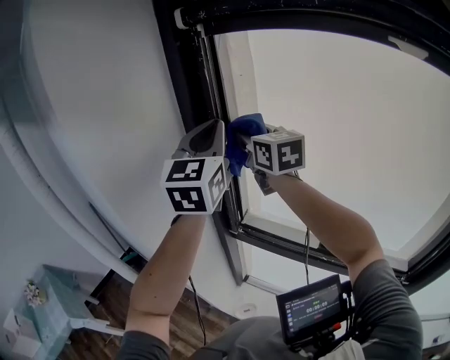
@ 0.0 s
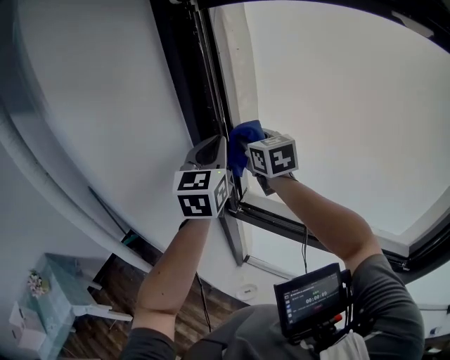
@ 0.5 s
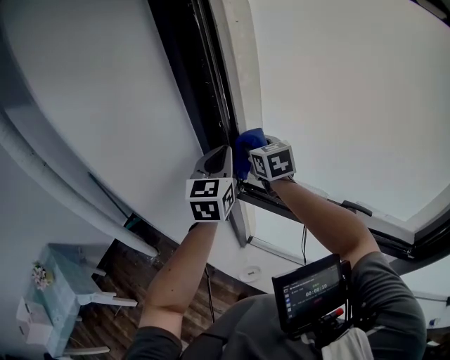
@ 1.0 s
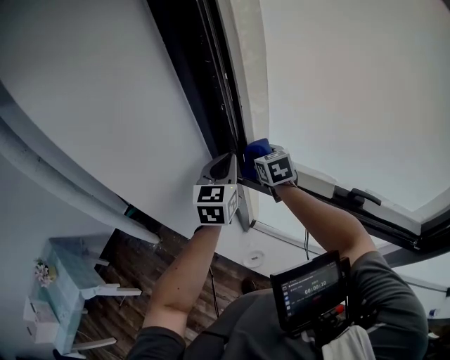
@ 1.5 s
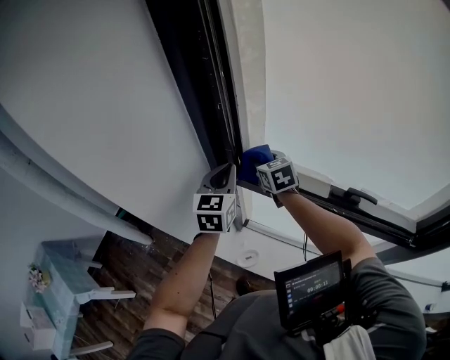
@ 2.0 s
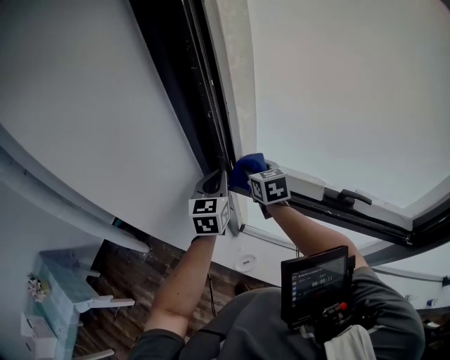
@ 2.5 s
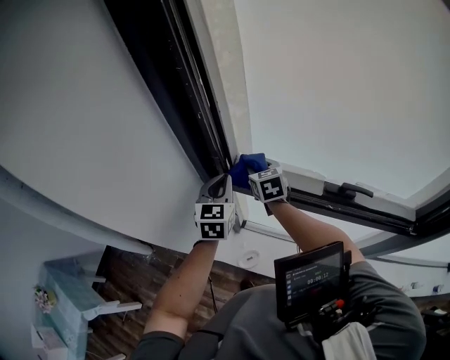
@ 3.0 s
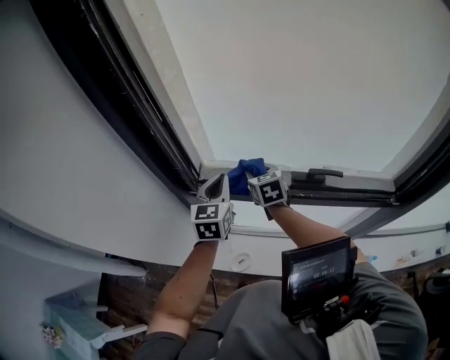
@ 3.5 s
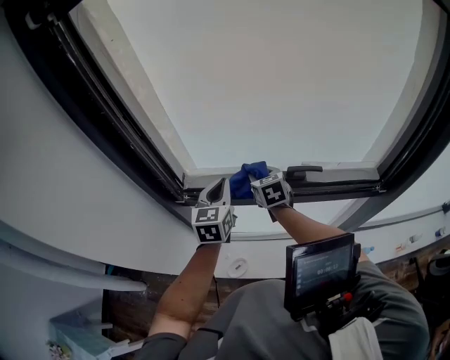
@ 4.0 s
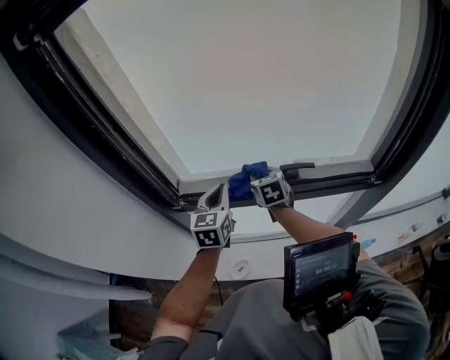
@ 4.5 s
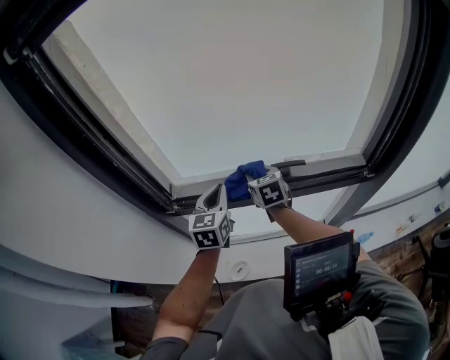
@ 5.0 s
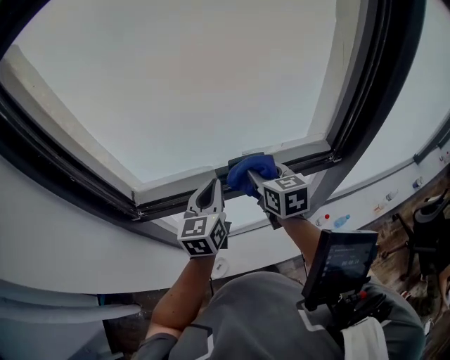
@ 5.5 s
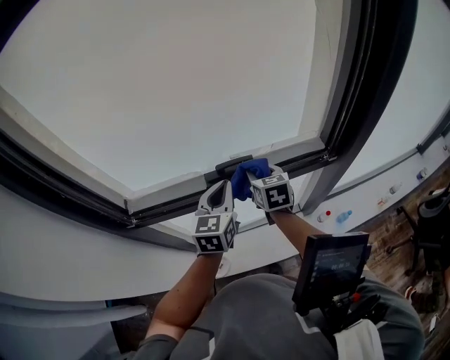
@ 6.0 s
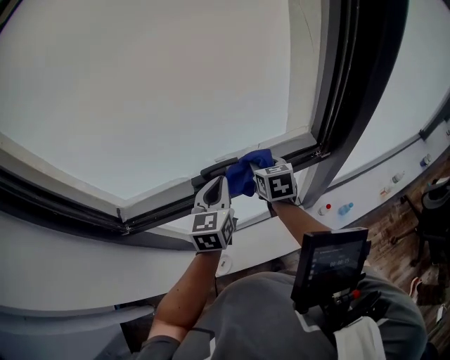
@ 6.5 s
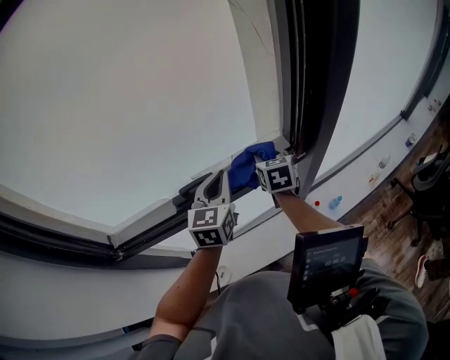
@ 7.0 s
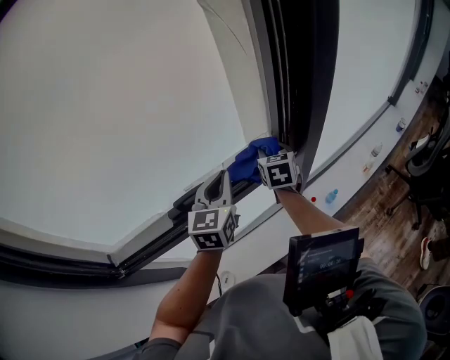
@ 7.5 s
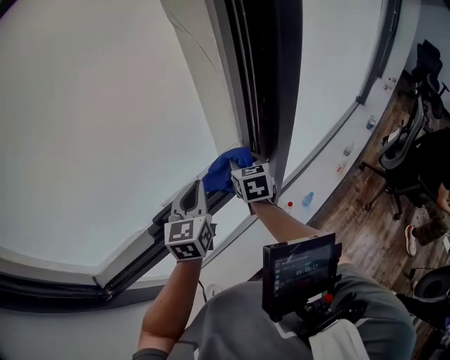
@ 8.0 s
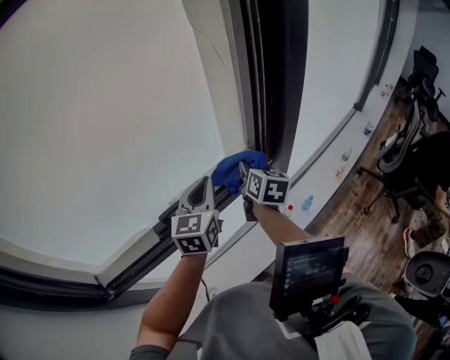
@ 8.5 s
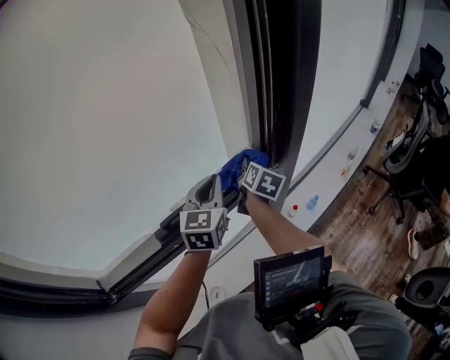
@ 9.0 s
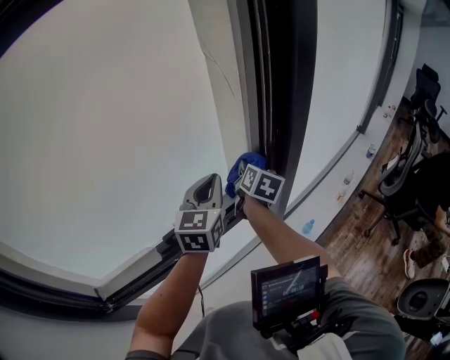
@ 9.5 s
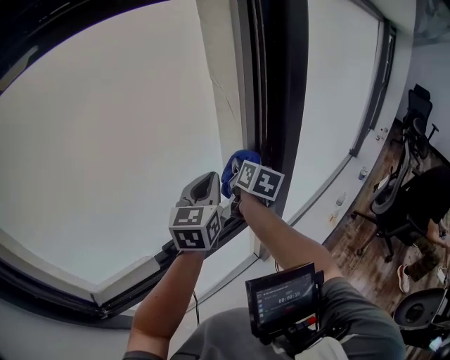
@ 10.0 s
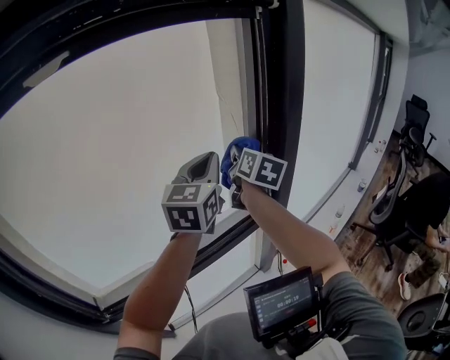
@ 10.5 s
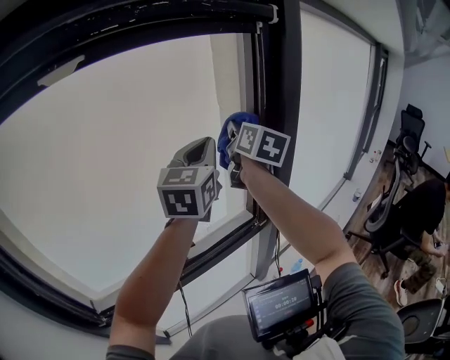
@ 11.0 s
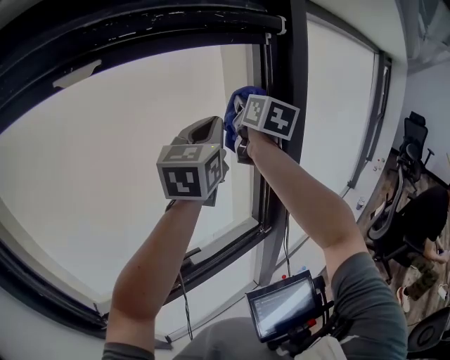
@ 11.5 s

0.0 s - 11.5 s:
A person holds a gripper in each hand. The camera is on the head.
0.0 s - 2.0 s: The two grippers go approximately 35 cm downward. The left gripper rotates about 30 degrees; the right gripper rotates about 30 degrees.
2.0 s - 4.0 s: The grippers both shift to the right by some 20 cm. The right gripper changes its angle by approximately 30 degrees.
4.0 s - 6.0 s: Both grippers travel together to the right, some 25 cm. The right gripper swivels approximately 20 degrees.
6.0 s - 7.5 s: Both grippers travel together to the right and forward, roughly 20 cm. The right gripper rotates approximately 20 degrees.
7.5 s - 9.5 s: The left gripper travels upward by about 10 cm, while the right gripper goes up and down, about 10 cm each way, reversing 2 times, and rotates about 40 degrees.
9.5 s - 11.5 s: The two grippers go approximately 35 cm upward. The right gripper turns by some 30 degrees. Meanwhile the left gripper turns by roughly 20 degrees.

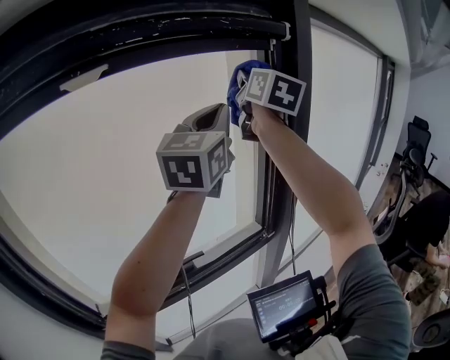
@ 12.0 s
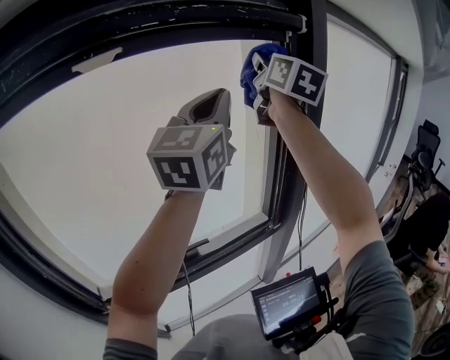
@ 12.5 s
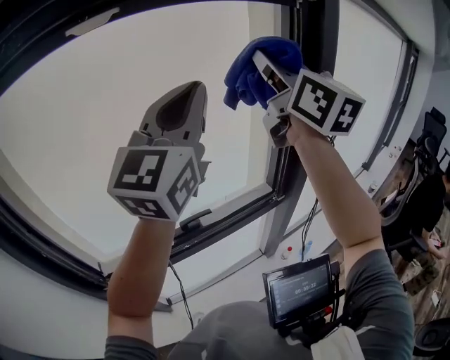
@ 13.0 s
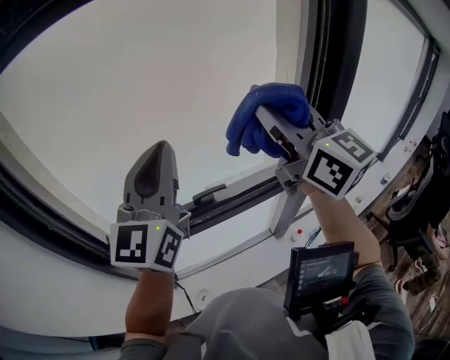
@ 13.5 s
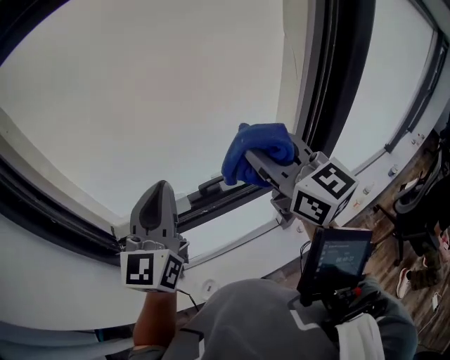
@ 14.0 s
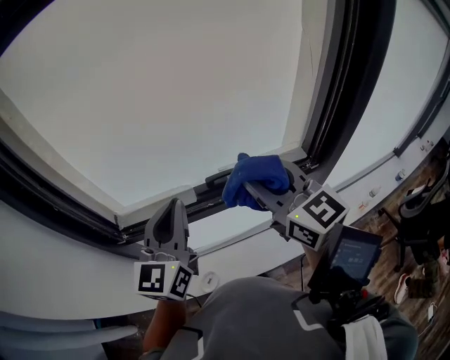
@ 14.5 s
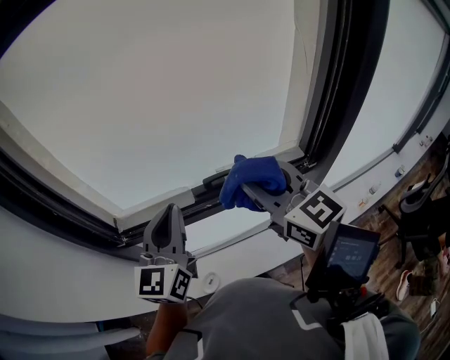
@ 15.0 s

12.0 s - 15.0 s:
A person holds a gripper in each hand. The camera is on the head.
12.0 s - 13.5 s: The right gripper shifts by some 25 cm, and swivels roughly 40 degrees, while the left gripper ends up some 30 cm from where it was, and turns by some 20 degrees.
13.5 s - 15.0 s: The two grippers go roughly 20 cm downward and to the left.

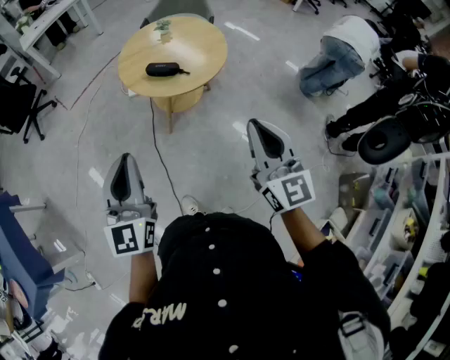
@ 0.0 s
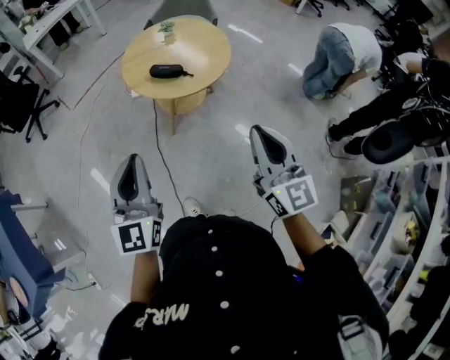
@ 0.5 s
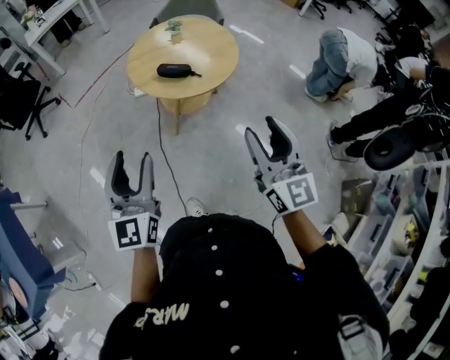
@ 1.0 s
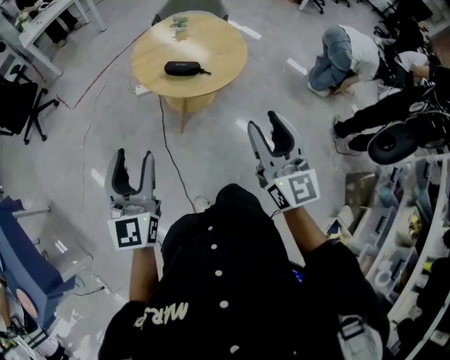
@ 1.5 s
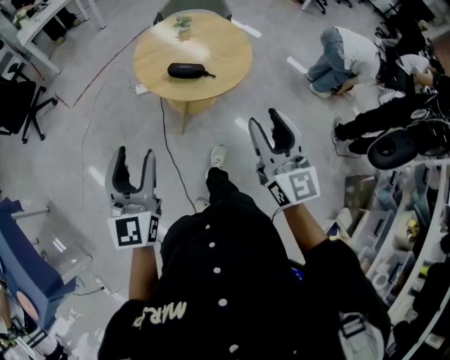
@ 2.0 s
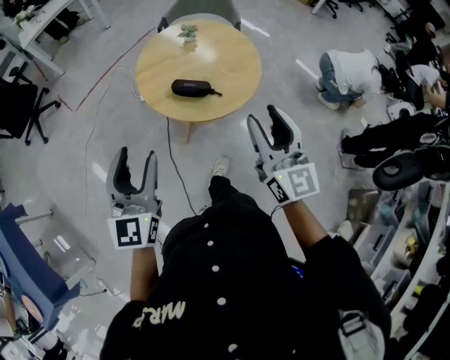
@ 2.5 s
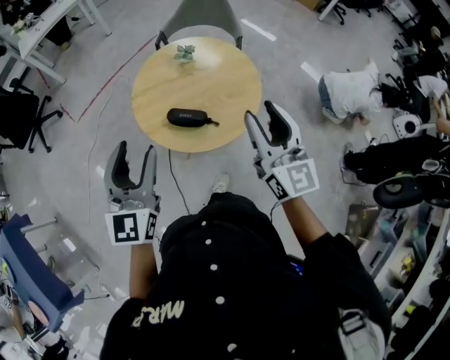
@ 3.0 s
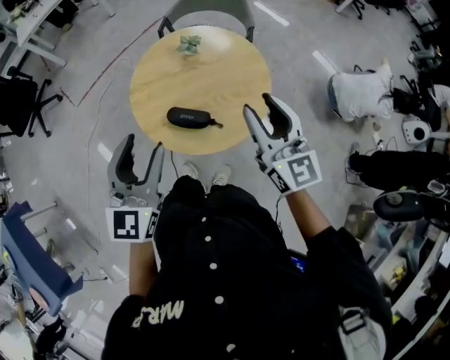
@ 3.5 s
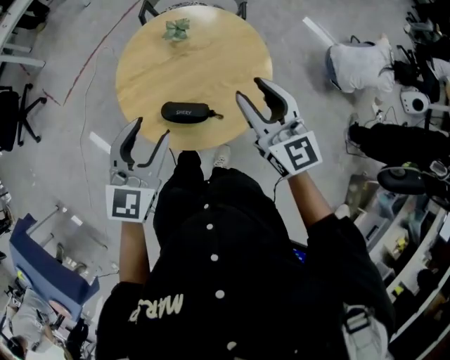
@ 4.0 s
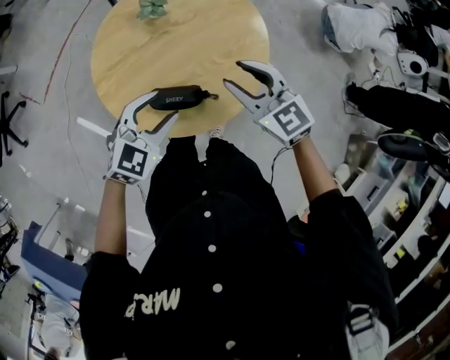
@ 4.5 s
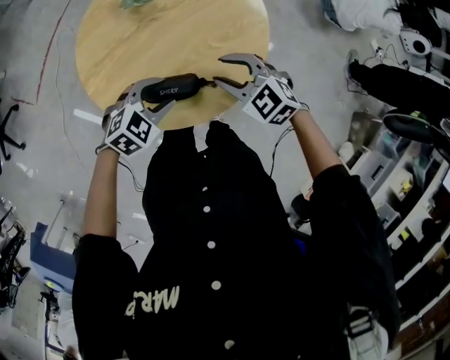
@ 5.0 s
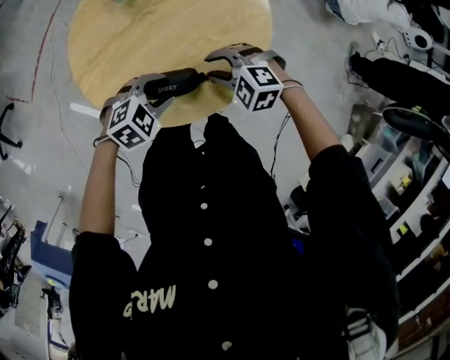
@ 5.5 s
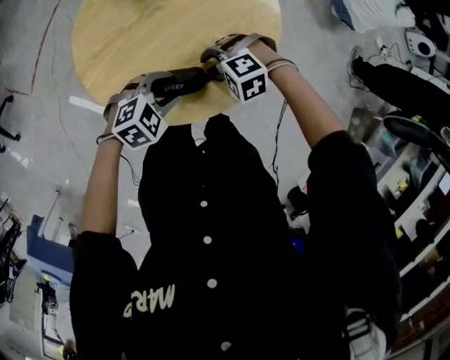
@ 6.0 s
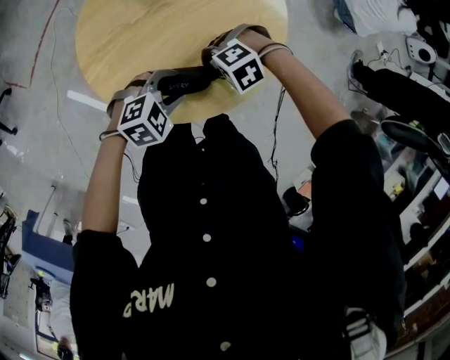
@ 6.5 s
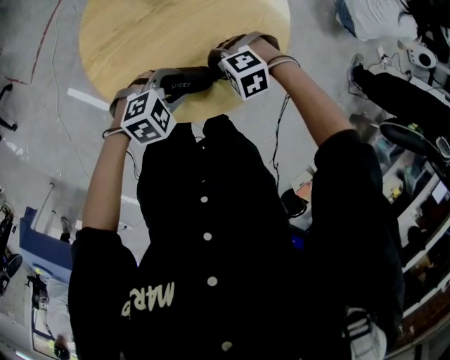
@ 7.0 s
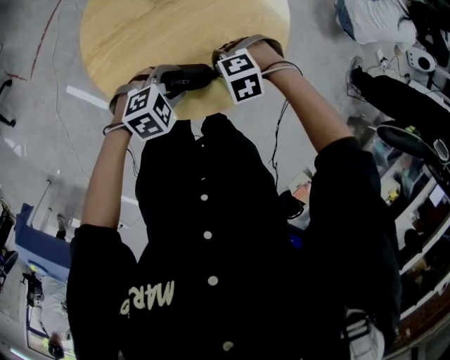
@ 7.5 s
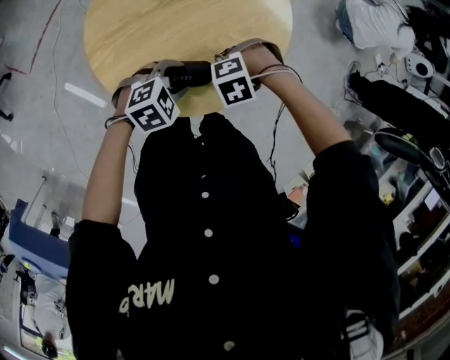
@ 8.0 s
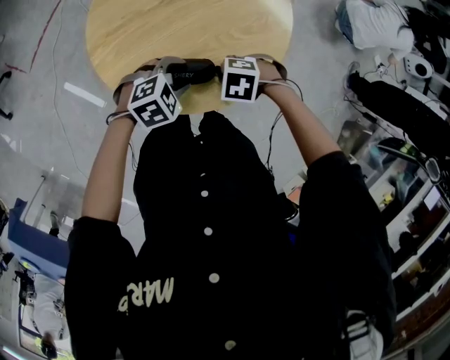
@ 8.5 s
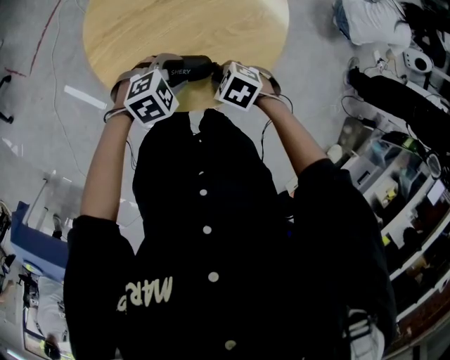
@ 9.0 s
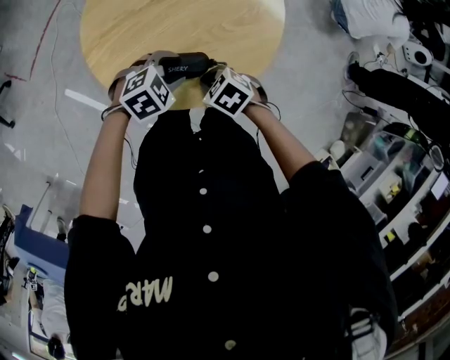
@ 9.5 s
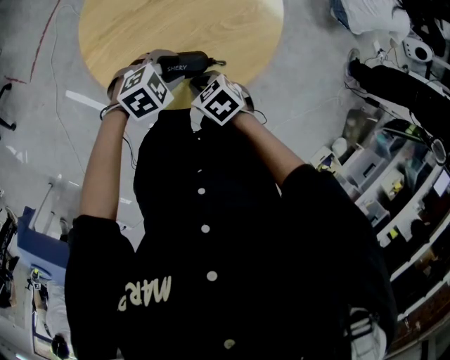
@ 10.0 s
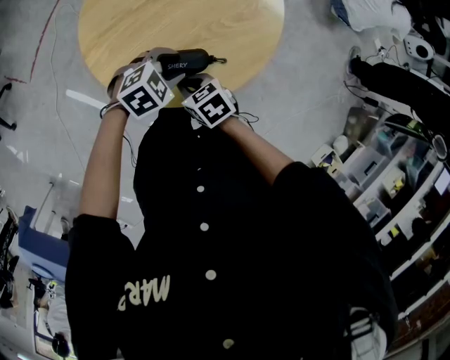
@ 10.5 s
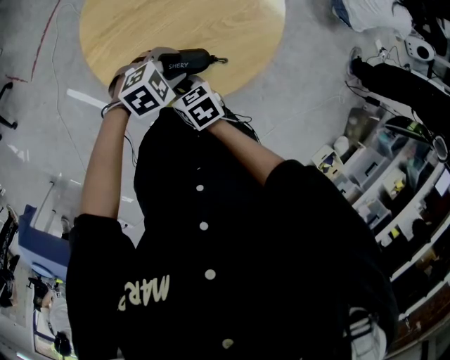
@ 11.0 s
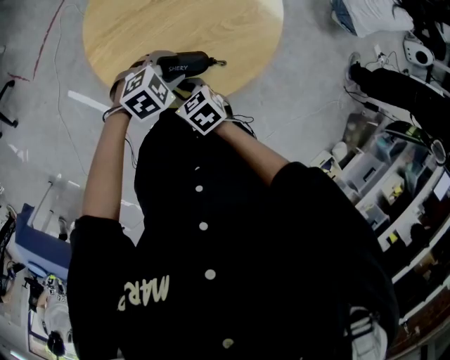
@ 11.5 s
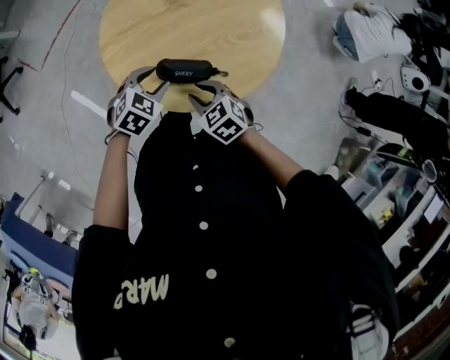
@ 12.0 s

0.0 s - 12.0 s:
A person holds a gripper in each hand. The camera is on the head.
0.0 s - 2.0 s: The left gripper heads to the left and forward, covering approximately 20 cm, and opens up. Meanwhile the right gripper is displaced forward and to the left by approximately 15 cm, and opens up.
2.0 s - 4.0 s: Both grippers are carried forward, approximately 50 cm. The left gripper changes its angle by about 30 degrees.
4.0 s - 6.0 s: The grippers both shift downward by roughly 30 cm. The left gripper tilts its fingers about 30 degrees downward; the right gripper tilts its fingers roughly 60 degrees downward.
6.0 s - 8.0 s: The right gripper changes its angle by some 30 degrees, and closes its fingers.
8.0 s - 10.0 s: The right gripper ends up some 10 cm from where it was, and rolls clockwise, seen from behind, by about 60 degrees.
10.0 s - 12.0 s: The right gripper is displaced upward by roughly 5 cm, rotates about 20 degrees, and opens up; the left gripper ends up roughly 5 cm from where it was, and swivels some 30 degrees.
